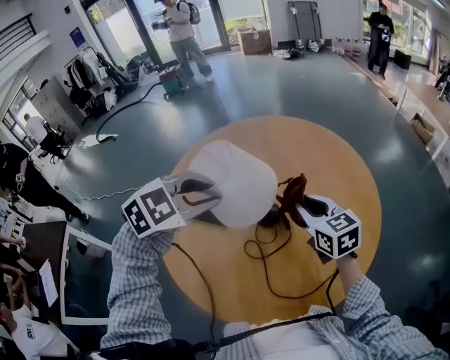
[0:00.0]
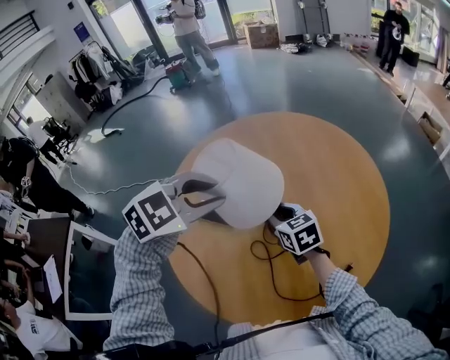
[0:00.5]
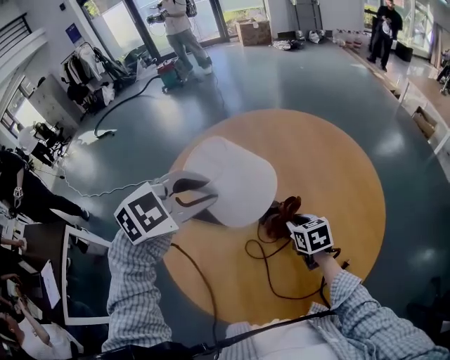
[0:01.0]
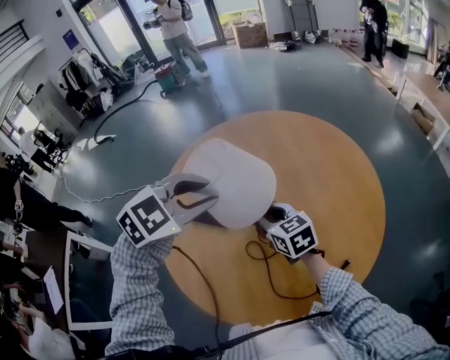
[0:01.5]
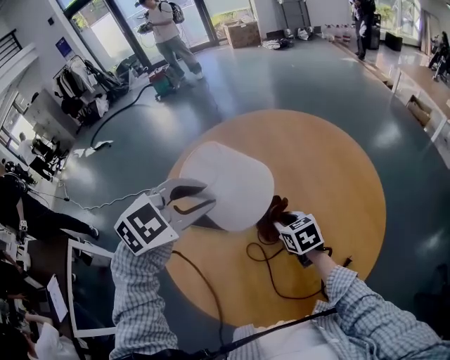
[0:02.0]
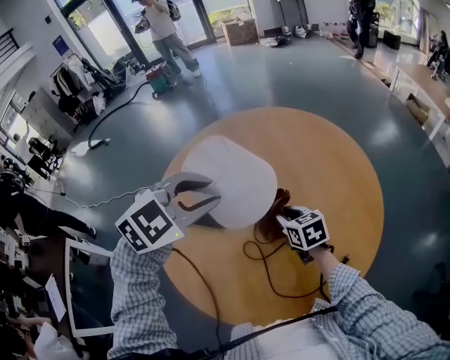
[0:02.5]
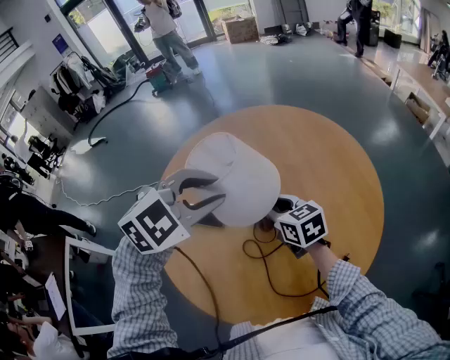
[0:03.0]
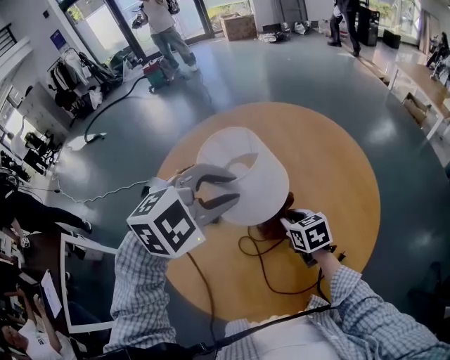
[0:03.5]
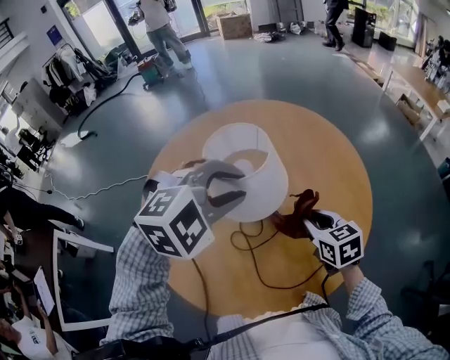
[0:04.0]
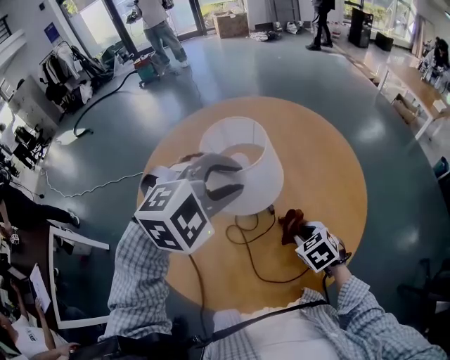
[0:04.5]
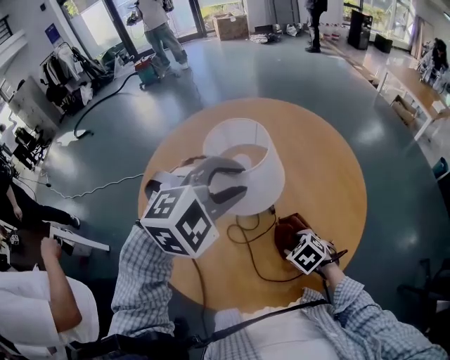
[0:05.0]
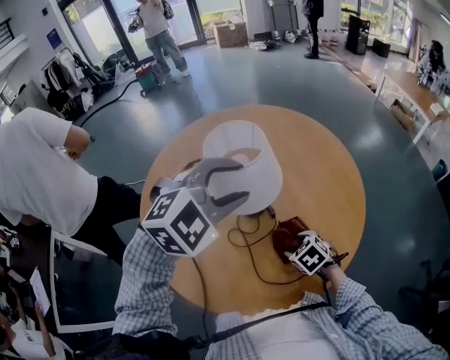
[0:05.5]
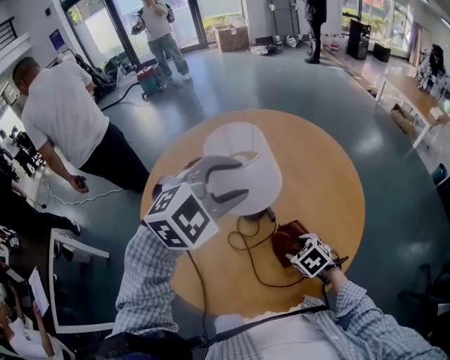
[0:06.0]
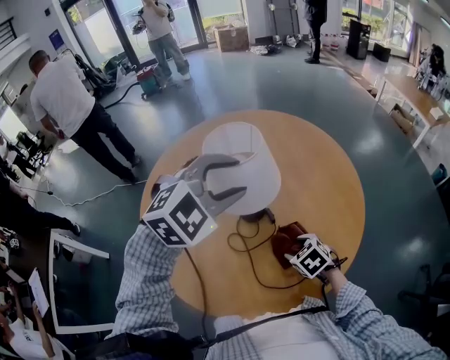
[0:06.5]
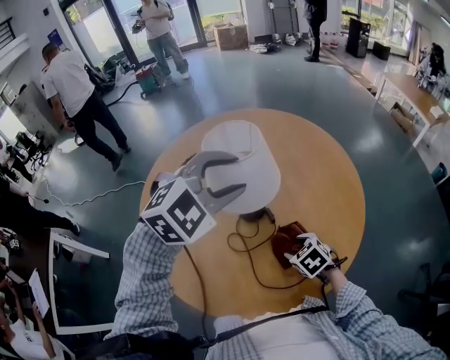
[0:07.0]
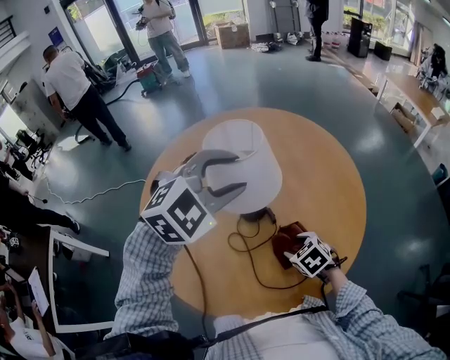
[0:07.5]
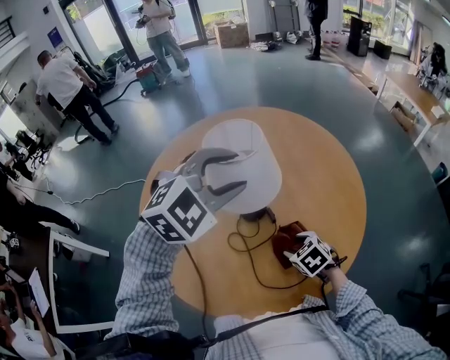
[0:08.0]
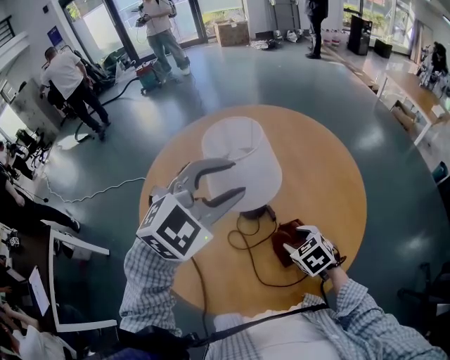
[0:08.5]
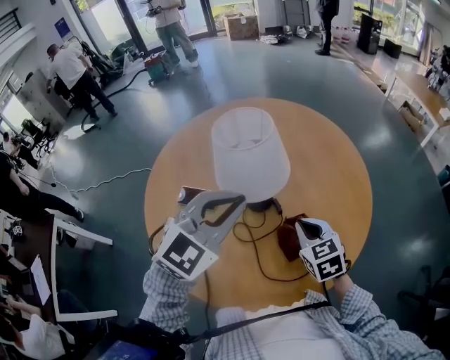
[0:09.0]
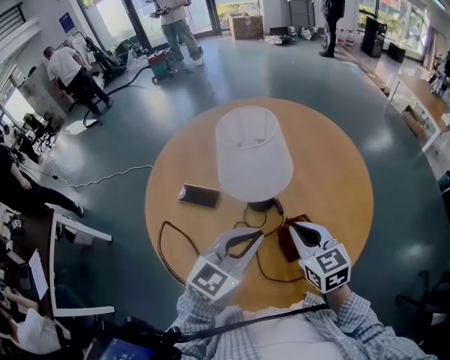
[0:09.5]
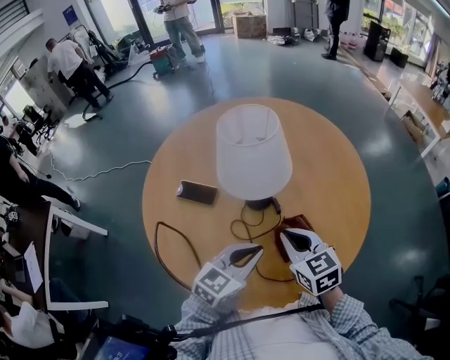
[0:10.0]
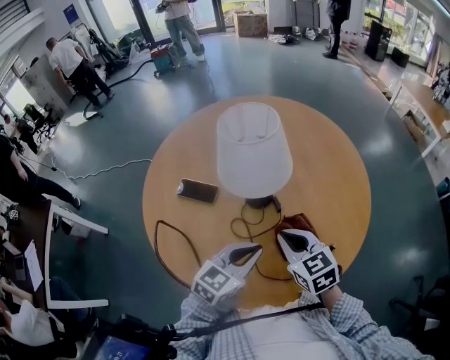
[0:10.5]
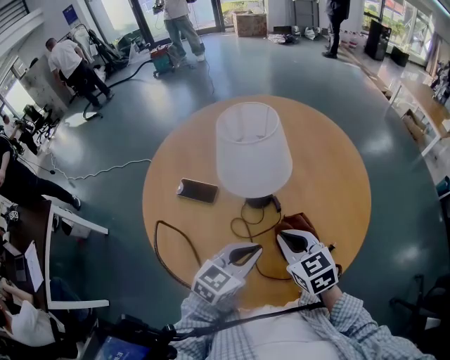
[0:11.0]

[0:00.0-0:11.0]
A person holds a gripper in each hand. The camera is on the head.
0:00.0 to 0:02.0: The right gripper moves up and down over some 15 cm, changing direction 2 times.
0:02.0 to 0:03.5: The left gripper goes about 5 cm to the right. The right gripper goes upward and returns, roughly 10 cm each way.
0:03.5 to 0:05.5: The right gripper heads backward, to the right and downward, covering some 15 cm, rotates some 30 degrees, and opens.
0:05.5 to 0:07.5: The grippers make only small movements.
0:07.5 to 0:09.0: The right gripper shifts some 10 cm upward, swivels some 30 degrees, and closes; the left gripper travels backward by some 5 cm, turns by about 20 degrees, and closes up.
0:09.0 to 0:11.0: The left gripper is displaced downward and backward by about 20 cm, and changes its angle by roughly 30 degrees; the right gripper changes place by roughly 5 cm.

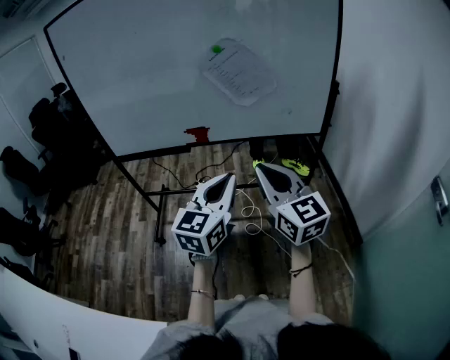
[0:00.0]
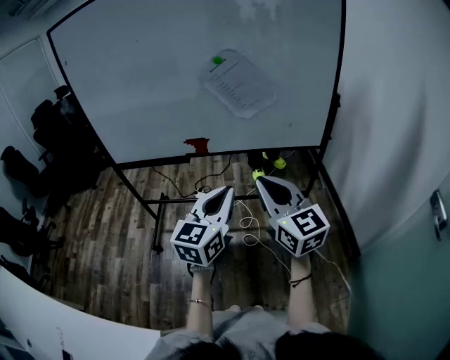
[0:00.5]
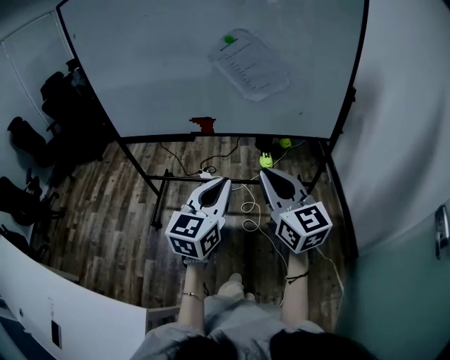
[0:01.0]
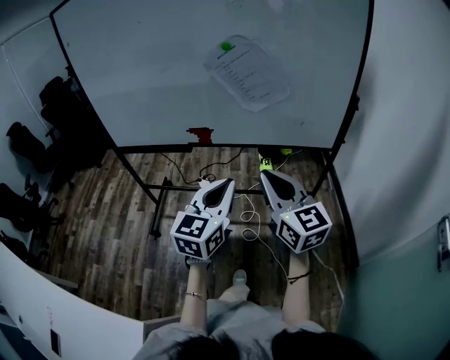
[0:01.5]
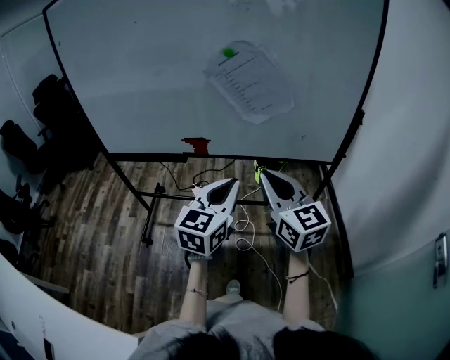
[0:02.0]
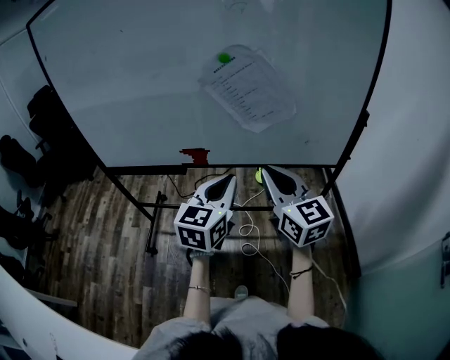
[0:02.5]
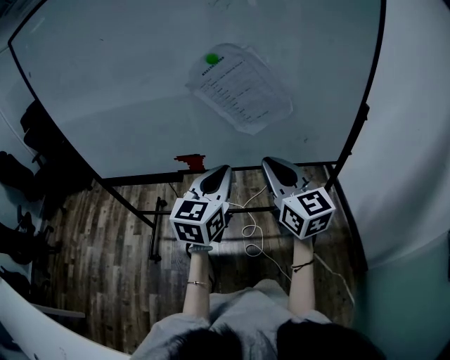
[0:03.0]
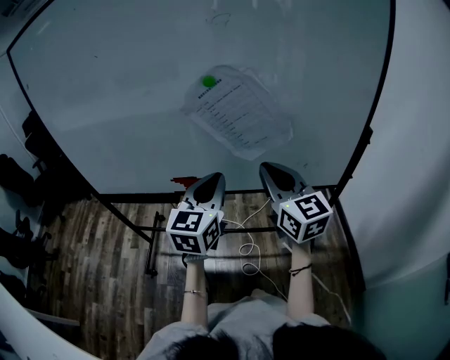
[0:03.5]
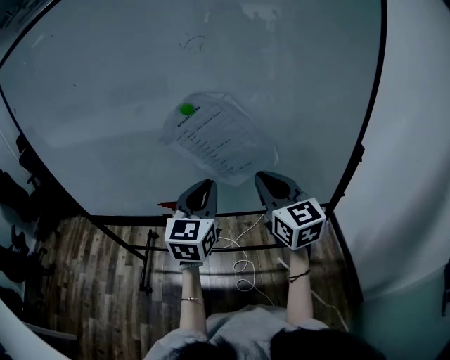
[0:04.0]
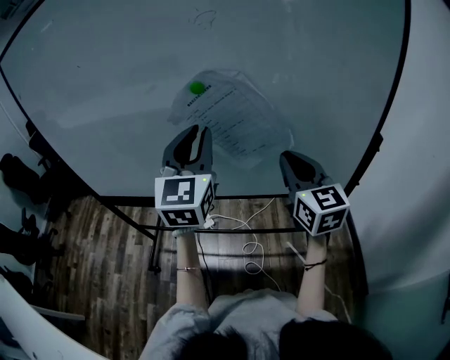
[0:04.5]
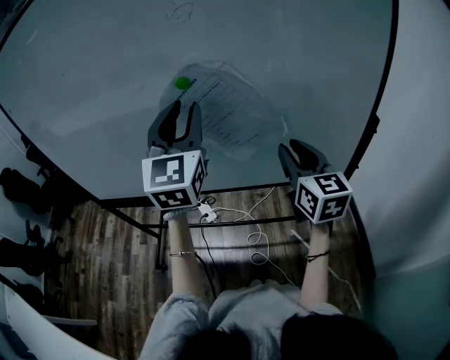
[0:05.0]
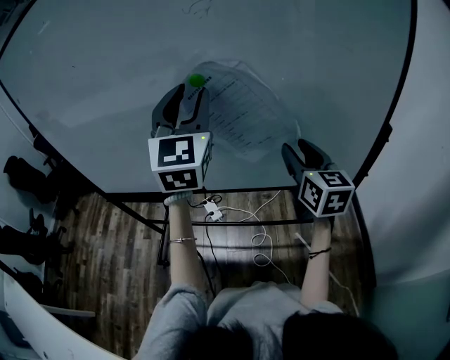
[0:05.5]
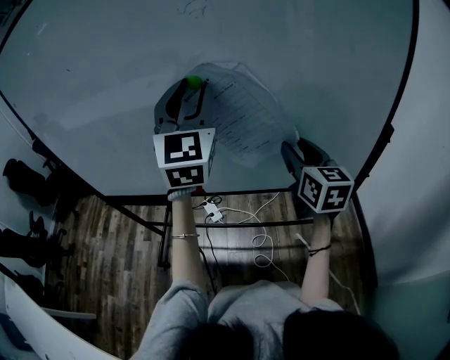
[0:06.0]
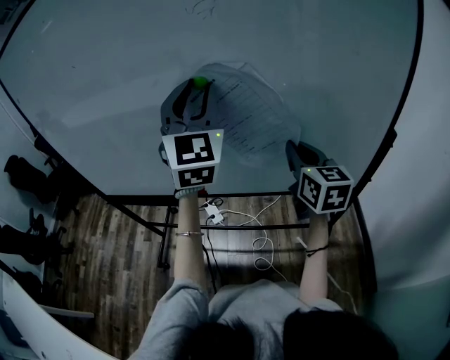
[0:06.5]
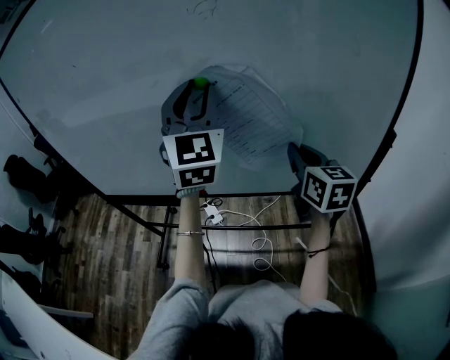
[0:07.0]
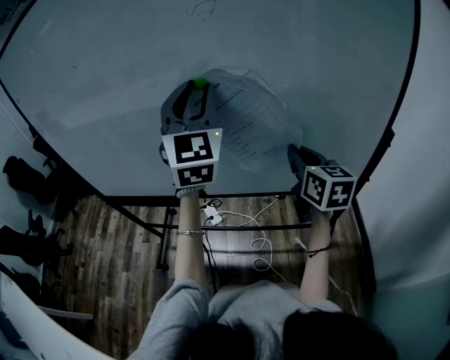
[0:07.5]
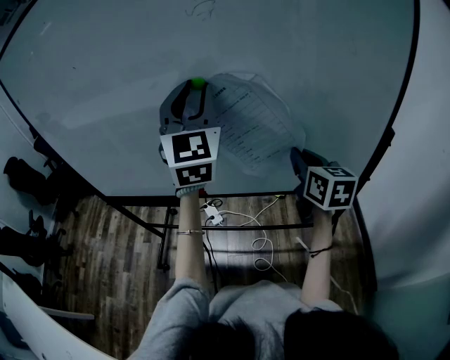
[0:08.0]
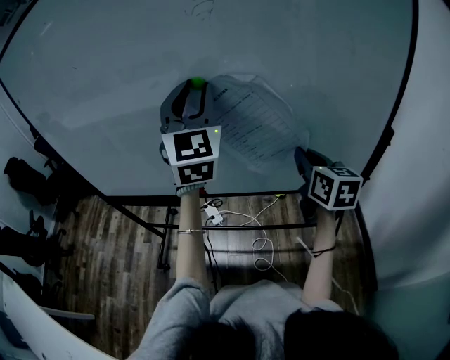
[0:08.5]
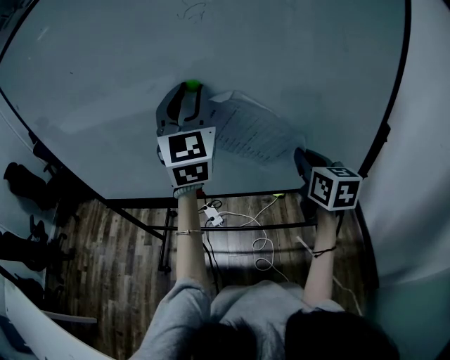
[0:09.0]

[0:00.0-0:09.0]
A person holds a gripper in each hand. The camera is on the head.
0:00.0 to 0:02.0: Both grippers travel together forward, roughly 15 cm.
0:02.0 to 0:04.5: The right gripper moves forward and to the right, about 25 cm, while the left gripper moves forward and upward, some 30 cm, and rotates about 30 degrees.
0:04.5 to 0:07.0: The left gripper shifts some 10 cm forward and upward. Meanwhile the right gripper is displaced forward by roughly 5 cm, and opens, then closes again.
0:07.0 to 0:09.0: The grippers stay close to where they were, moving slightly.

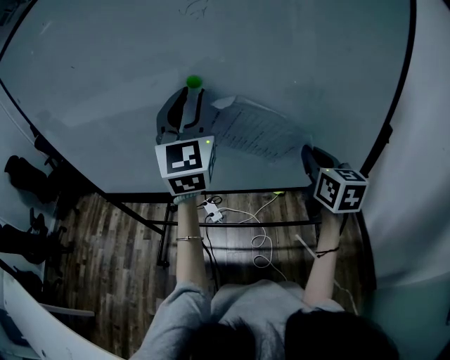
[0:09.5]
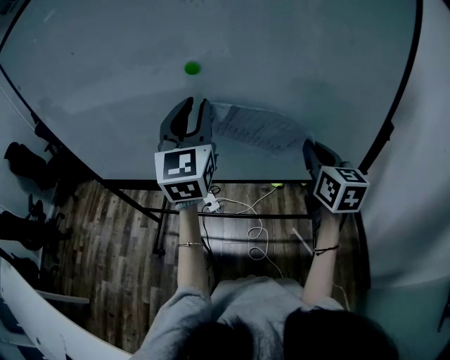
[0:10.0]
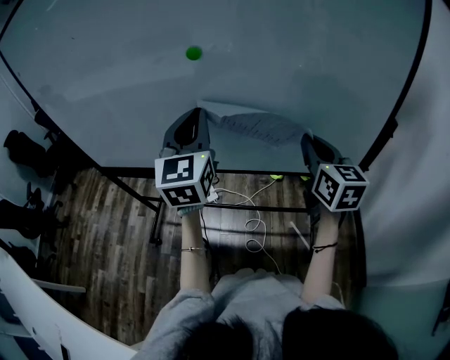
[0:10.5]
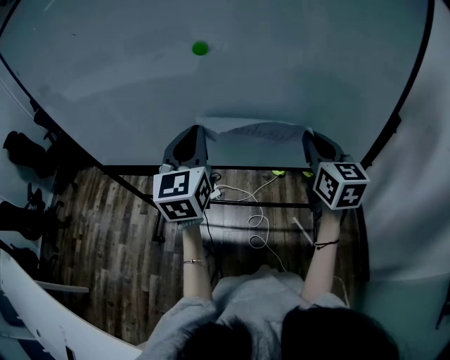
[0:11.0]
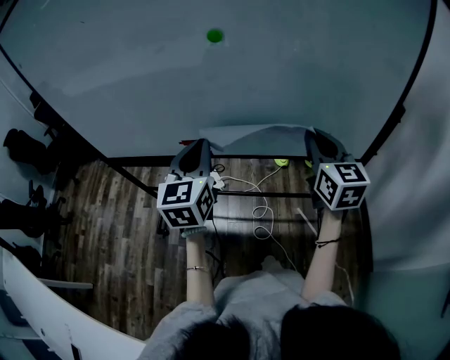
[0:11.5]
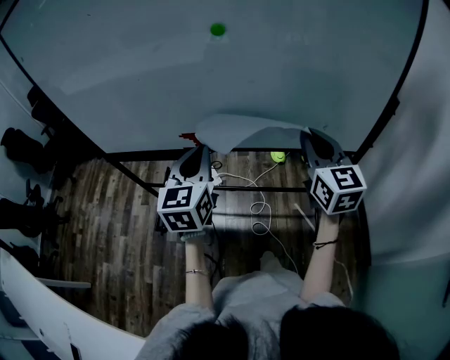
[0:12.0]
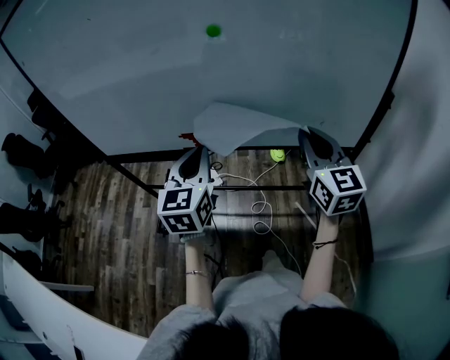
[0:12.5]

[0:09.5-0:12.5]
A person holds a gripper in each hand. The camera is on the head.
0:09.5 to 0:11.0: The left gripper is displaced downward by roughly 15 cm, swivels some 20 degrees, and closes.
0:11.0 to 0:12.5: The left gripper travels backward and downward by roughly 10 cm; the right gripper is displaced backward and to the left by approximately 10 cm.

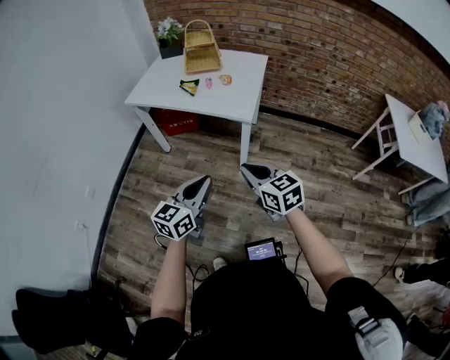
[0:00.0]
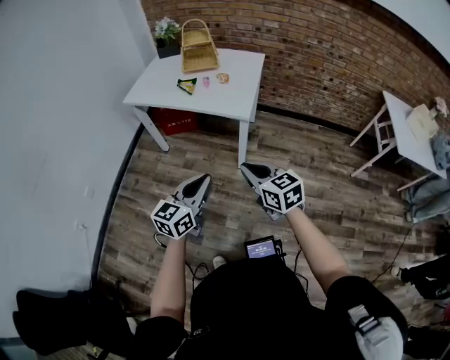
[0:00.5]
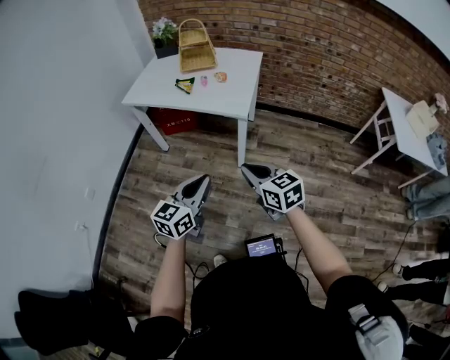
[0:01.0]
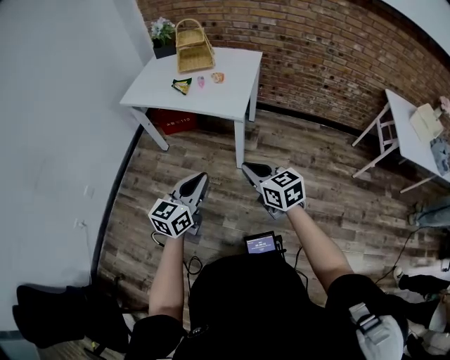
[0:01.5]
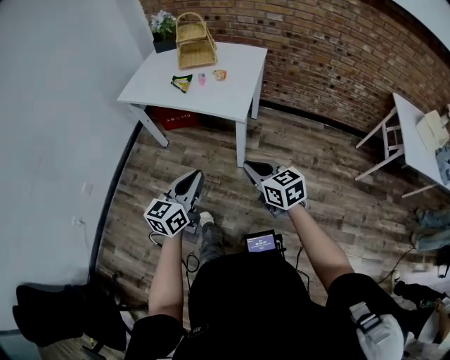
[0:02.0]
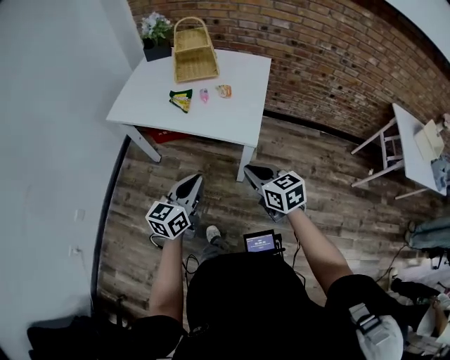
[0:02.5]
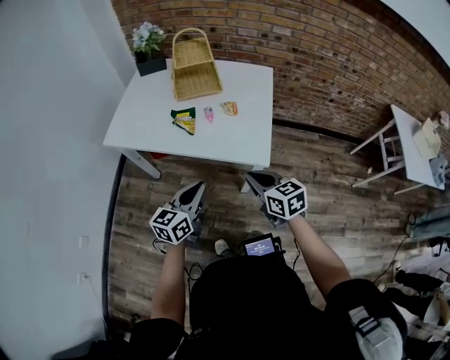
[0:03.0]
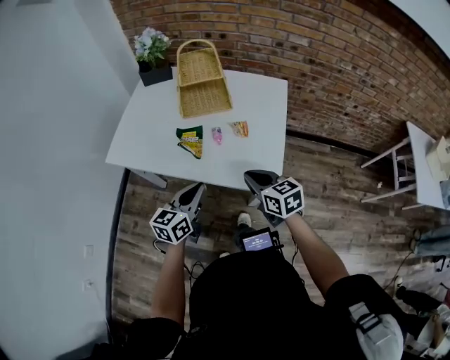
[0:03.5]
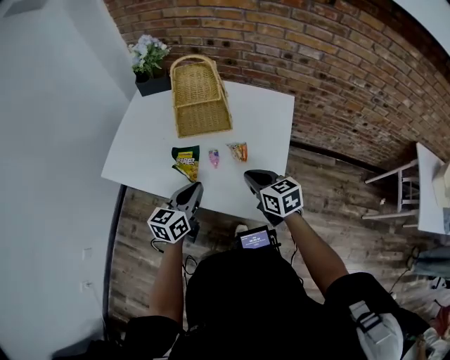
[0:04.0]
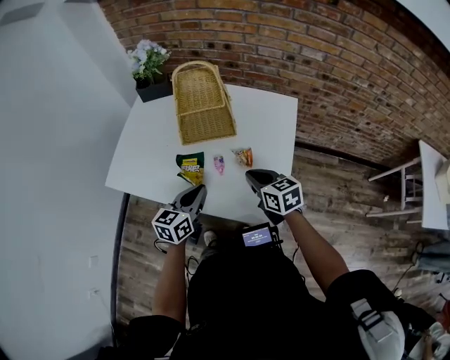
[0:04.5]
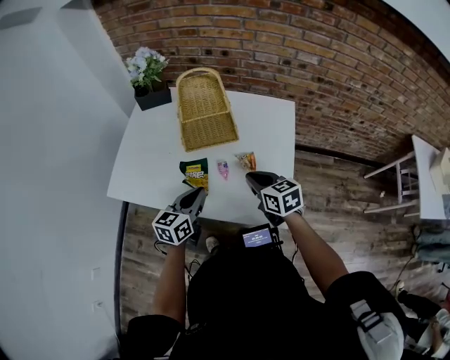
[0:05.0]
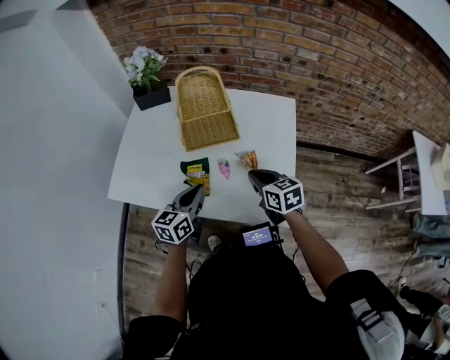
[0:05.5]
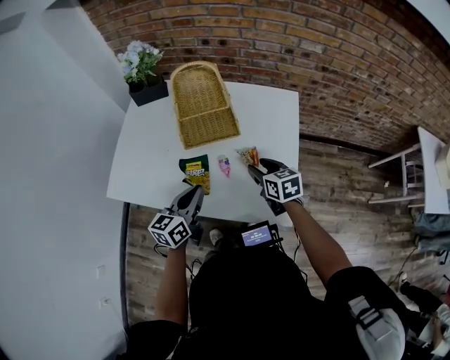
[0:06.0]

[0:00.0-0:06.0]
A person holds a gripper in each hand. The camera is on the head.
0:00.0 to 0:02.0: The left gripper moves forward, about 5 cm, while the right gripper travels to the right by approximately 5 cm.
0:02.0 to 0:04.0: Both grippers are carried forward, approximately 50 cm.
0:04.0 to 0:06.0: The left gripper moves approximately 5 cm, while the right gripper heads forward, covering some 5 cm, and opens.
